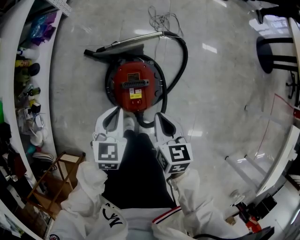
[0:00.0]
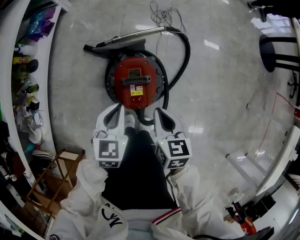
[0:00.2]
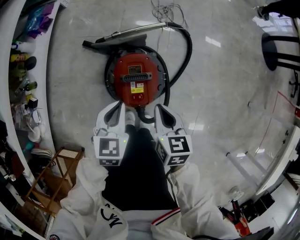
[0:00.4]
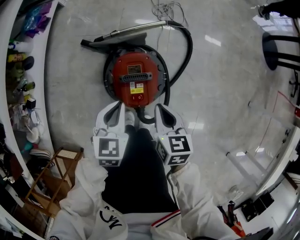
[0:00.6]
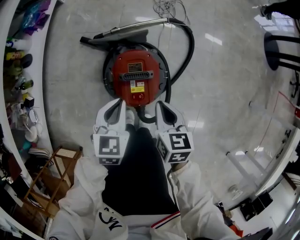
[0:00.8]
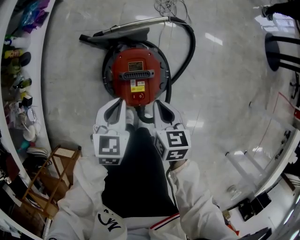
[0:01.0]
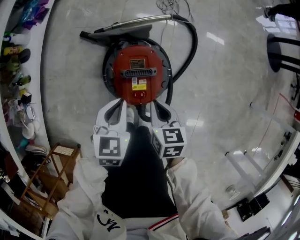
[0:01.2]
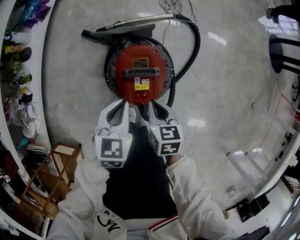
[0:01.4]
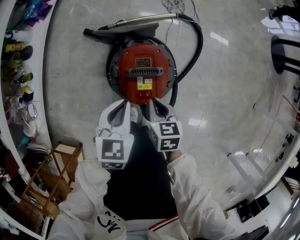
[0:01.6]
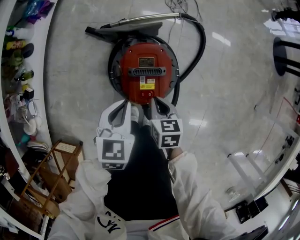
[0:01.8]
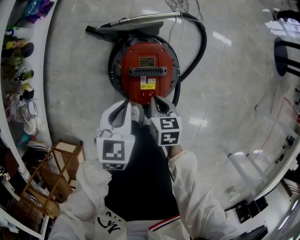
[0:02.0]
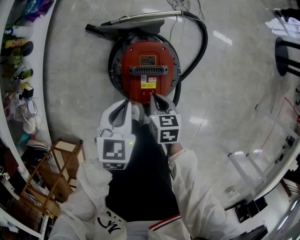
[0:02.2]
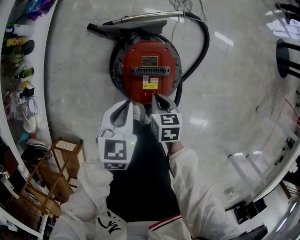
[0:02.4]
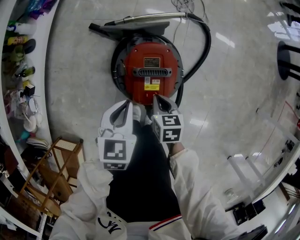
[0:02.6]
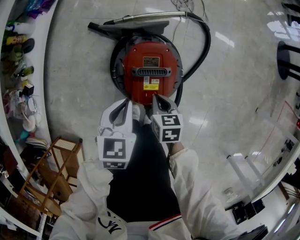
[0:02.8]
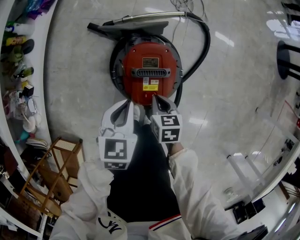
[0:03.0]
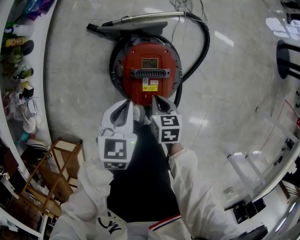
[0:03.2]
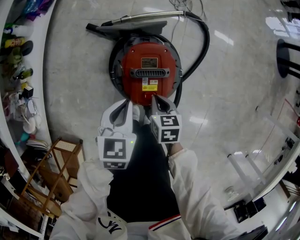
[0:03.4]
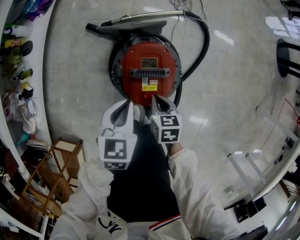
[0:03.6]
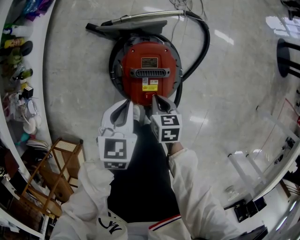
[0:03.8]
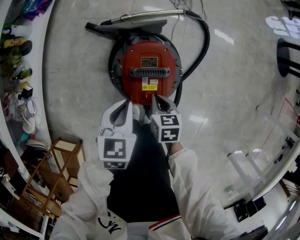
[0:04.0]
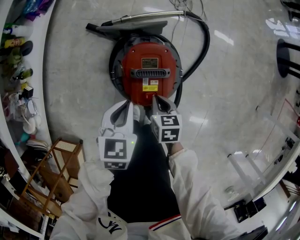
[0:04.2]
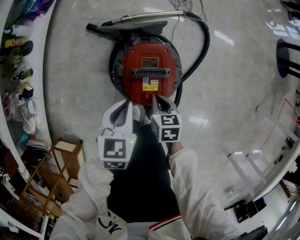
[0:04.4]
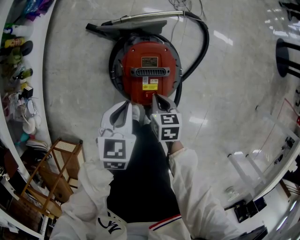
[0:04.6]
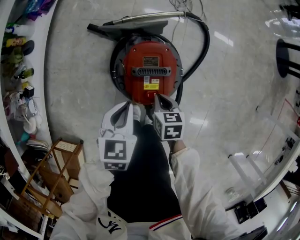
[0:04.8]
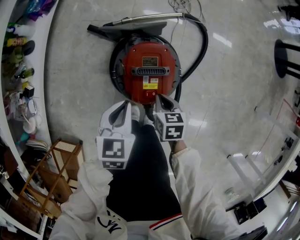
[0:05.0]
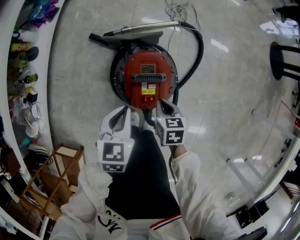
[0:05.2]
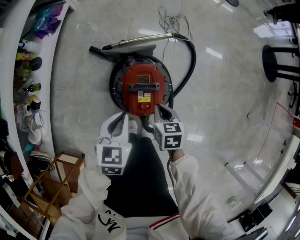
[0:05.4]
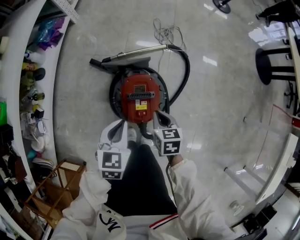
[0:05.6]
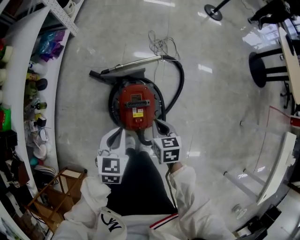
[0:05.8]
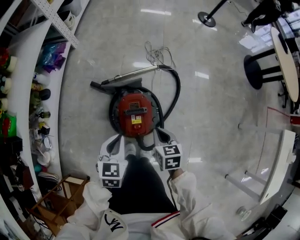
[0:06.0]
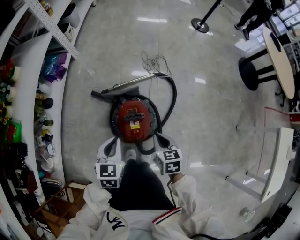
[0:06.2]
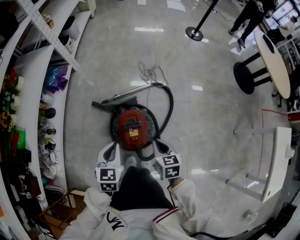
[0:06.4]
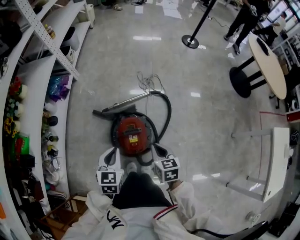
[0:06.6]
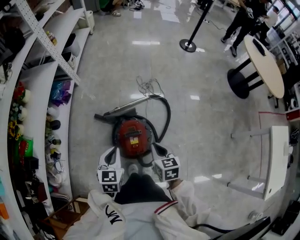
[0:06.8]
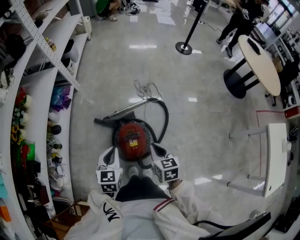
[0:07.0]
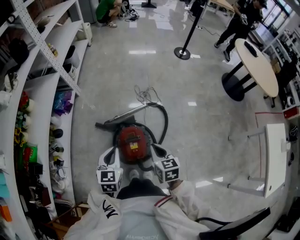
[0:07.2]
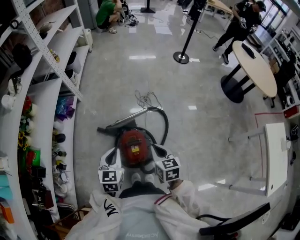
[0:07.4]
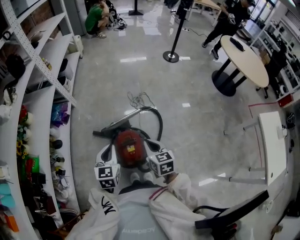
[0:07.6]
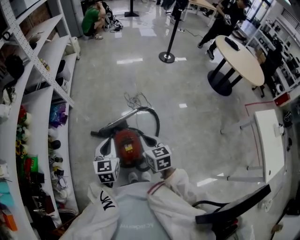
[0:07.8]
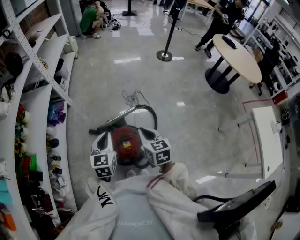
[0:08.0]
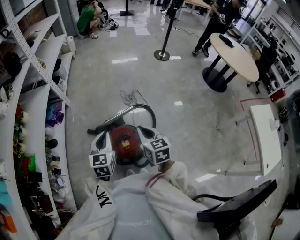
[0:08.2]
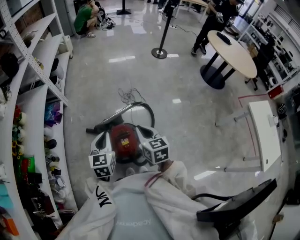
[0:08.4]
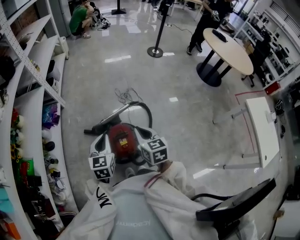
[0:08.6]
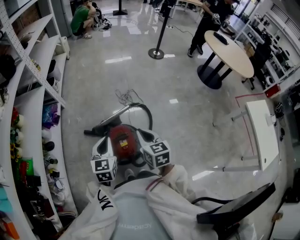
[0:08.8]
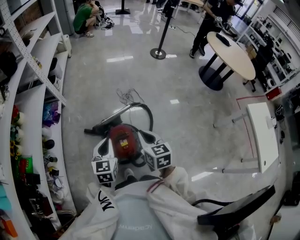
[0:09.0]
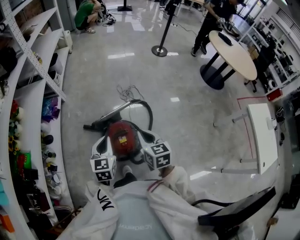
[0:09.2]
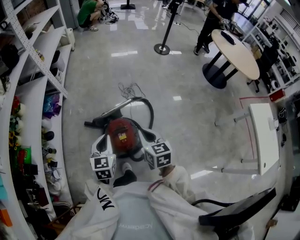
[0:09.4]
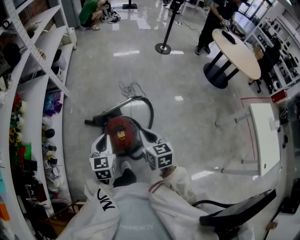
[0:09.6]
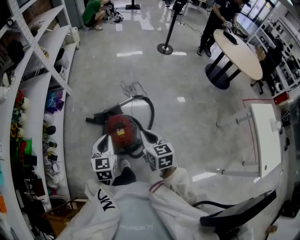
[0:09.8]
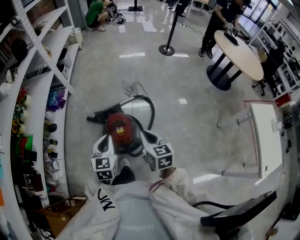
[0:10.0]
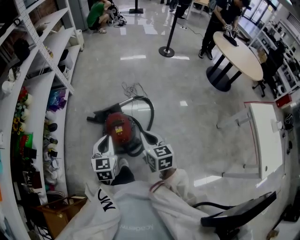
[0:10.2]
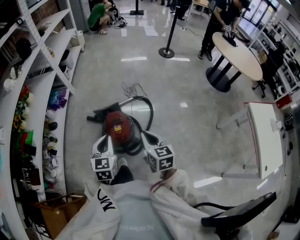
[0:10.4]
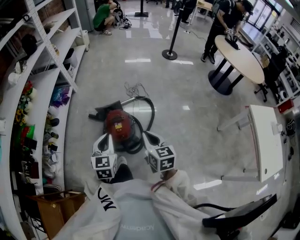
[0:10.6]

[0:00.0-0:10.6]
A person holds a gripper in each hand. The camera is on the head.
0:00.0 to 0:01.6: The right gripper is displaced downward by about 15 cm. The left gripper shifts roughly 5 cm downward.
0:01.6 to 0:03.0: The right gripper shifts approximately 5 cm downward.
0:03.0 to 0:04.6: Both grippers stay about where they are.
0:04.6 to 0:06.0: The two grippers go roughly 15 cm upward.
0:06.0 to 0:07.6: The two grippers go some 20 cm upward.
0:07.6 to 0:09.0: The right gripper changes place by approximately 5 cm.
0:09.0 to 0:10.6: The right gripper shifts approximately 15 cm backward and to the right. Meanwhile the left gripper travels backward by approximately 15 cm.

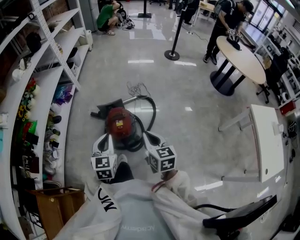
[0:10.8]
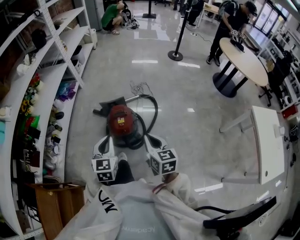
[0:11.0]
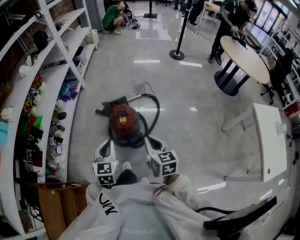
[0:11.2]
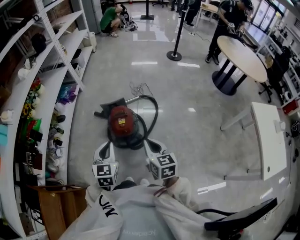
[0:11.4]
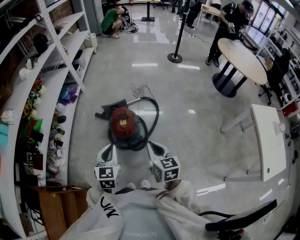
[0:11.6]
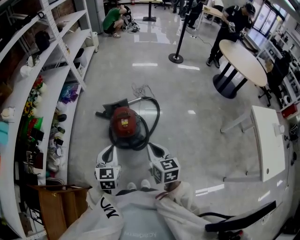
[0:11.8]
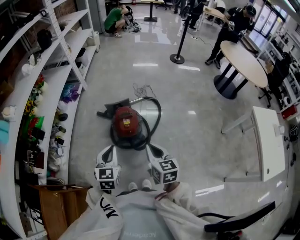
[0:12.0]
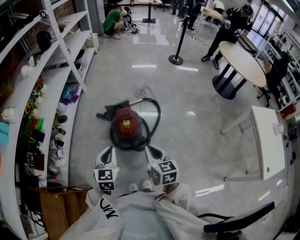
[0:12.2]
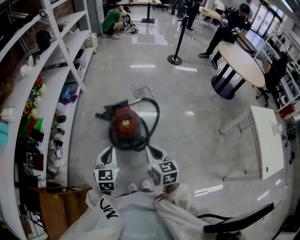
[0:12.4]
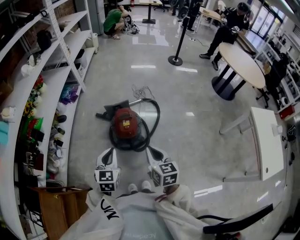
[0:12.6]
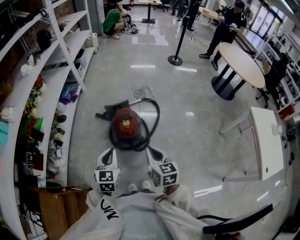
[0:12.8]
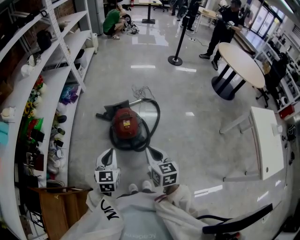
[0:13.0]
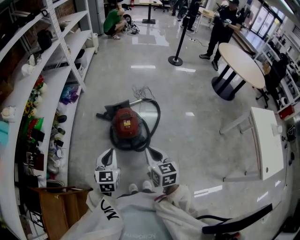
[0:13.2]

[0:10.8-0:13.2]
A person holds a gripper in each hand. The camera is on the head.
0:10.8 to 0:12.0: The left gripper travels backward by roughly 5 cm; the right gripper moves backward and to the left, some 10 cm.
0:12.0 to 0:13.2: The grippers move only a little.

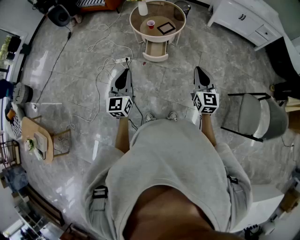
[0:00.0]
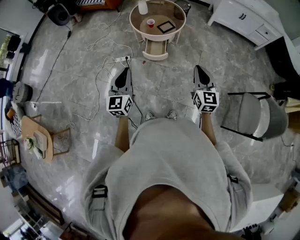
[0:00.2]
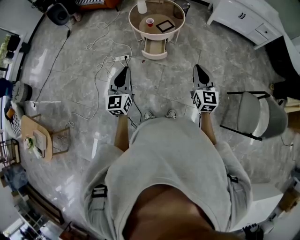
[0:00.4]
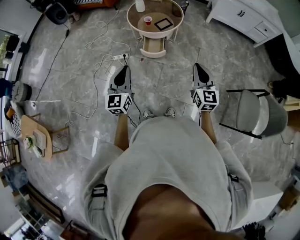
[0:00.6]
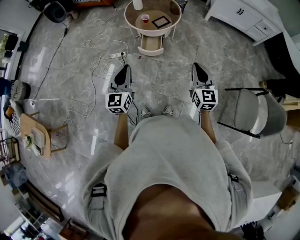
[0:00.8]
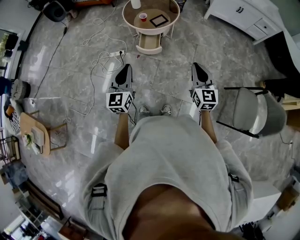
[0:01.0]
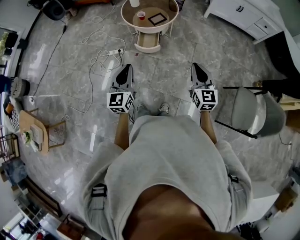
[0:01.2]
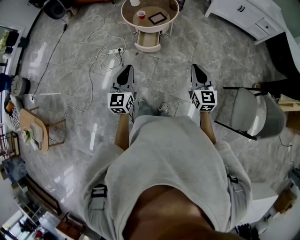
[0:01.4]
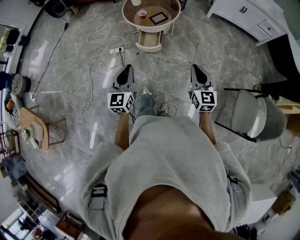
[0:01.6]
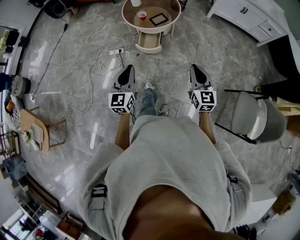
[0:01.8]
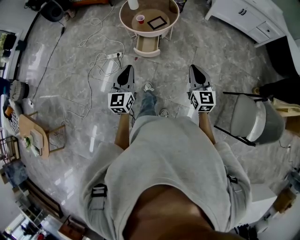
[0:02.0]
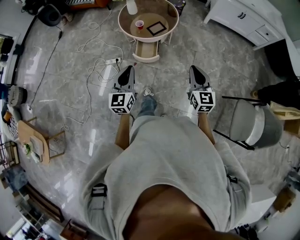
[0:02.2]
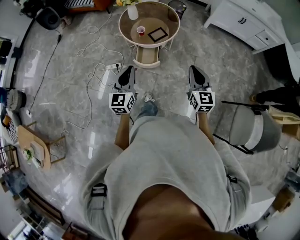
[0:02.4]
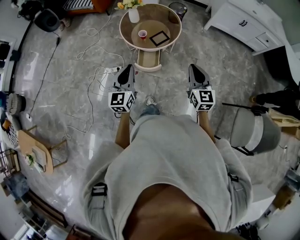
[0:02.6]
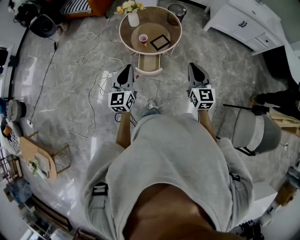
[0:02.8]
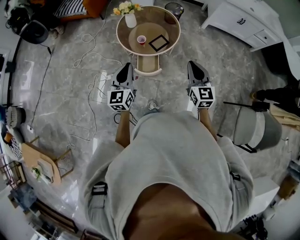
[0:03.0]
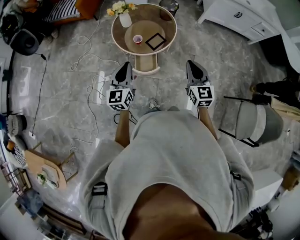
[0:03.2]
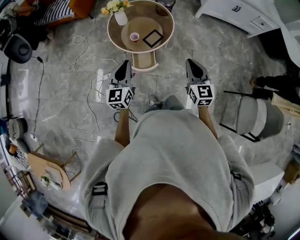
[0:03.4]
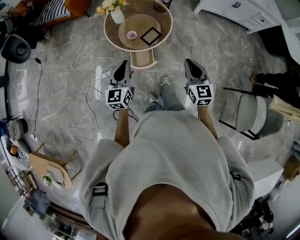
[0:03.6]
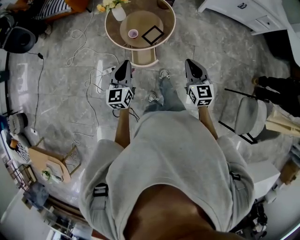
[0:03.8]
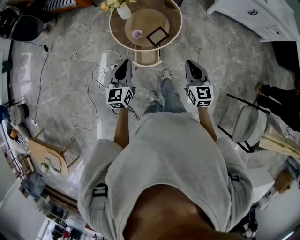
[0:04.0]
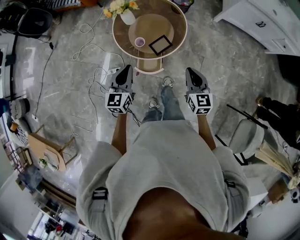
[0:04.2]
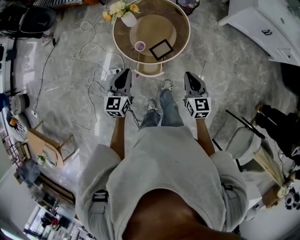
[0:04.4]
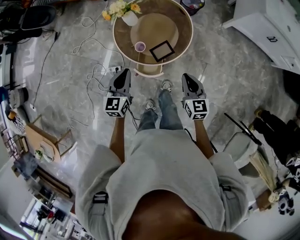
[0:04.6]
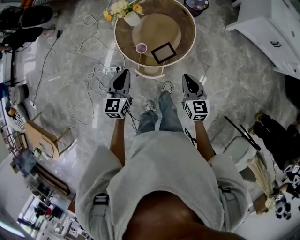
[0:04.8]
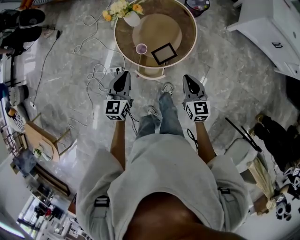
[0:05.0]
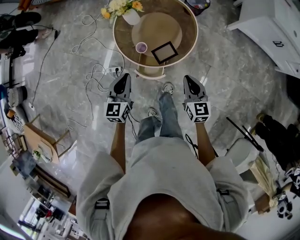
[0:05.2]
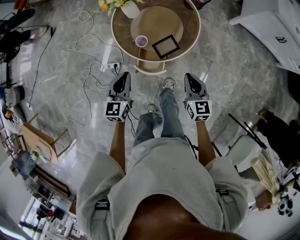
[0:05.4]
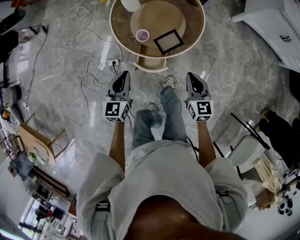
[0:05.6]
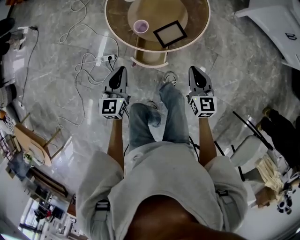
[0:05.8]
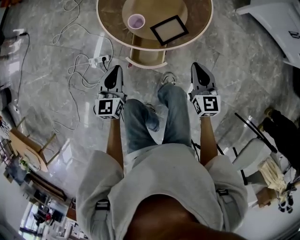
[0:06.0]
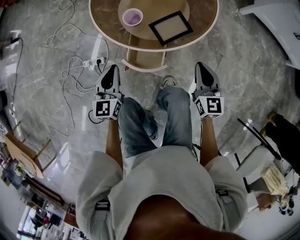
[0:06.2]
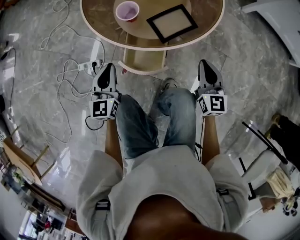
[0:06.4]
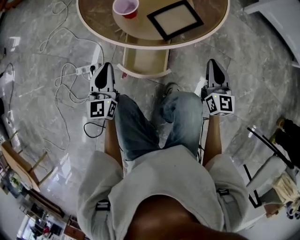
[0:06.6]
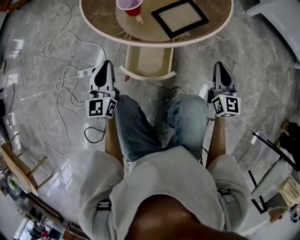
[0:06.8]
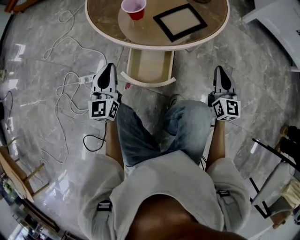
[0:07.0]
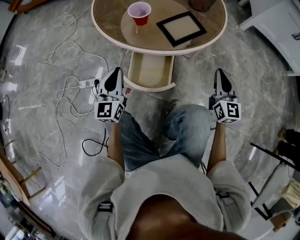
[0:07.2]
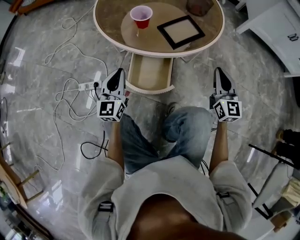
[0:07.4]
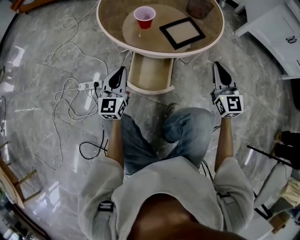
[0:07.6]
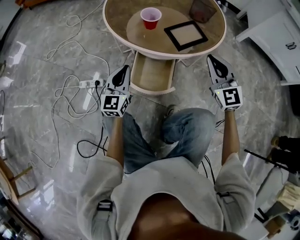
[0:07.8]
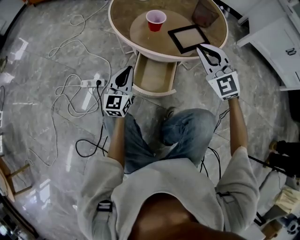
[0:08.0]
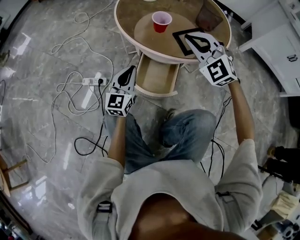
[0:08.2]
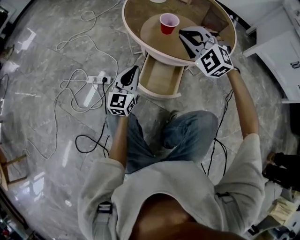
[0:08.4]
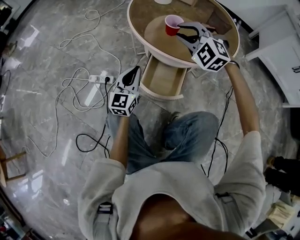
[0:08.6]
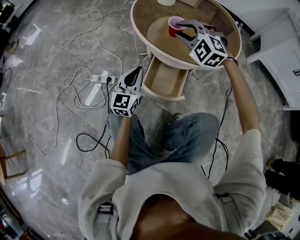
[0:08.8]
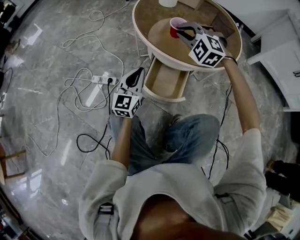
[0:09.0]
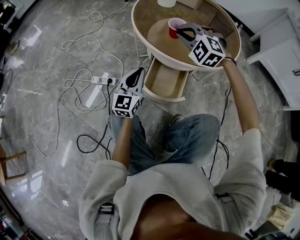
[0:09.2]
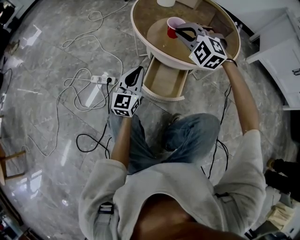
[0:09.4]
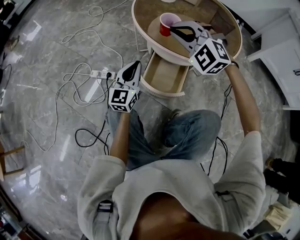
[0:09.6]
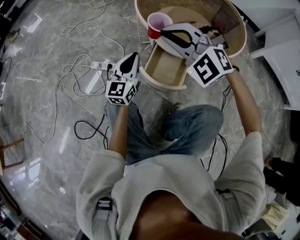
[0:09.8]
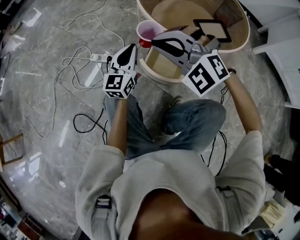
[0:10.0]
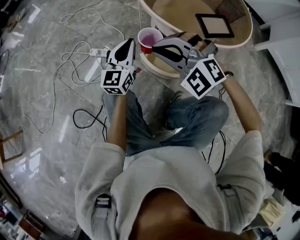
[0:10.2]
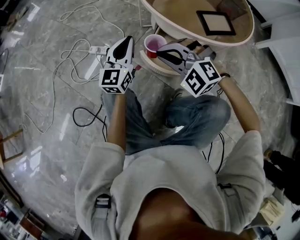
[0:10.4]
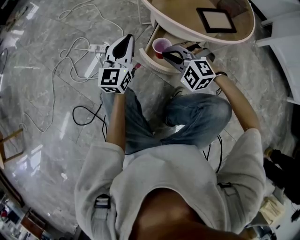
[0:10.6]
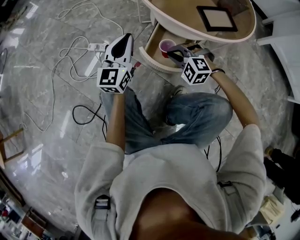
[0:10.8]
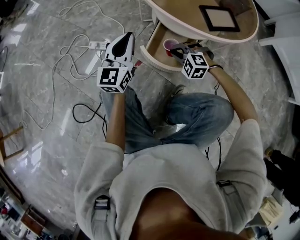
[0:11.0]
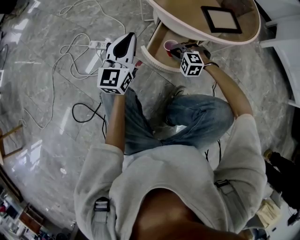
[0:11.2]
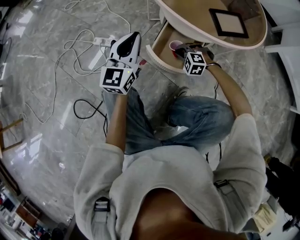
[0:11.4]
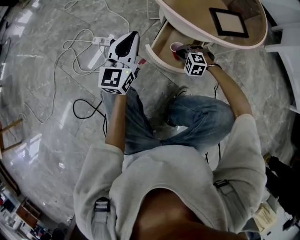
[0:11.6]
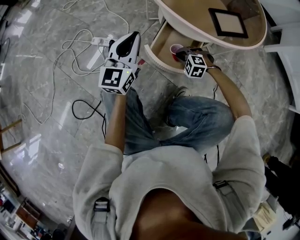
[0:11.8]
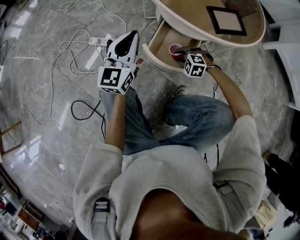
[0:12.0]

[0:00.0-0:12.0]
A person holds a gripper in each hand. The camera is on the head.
0:00.0 to 0:01.6: The grippers both shift to the right by approximately 10 cm.
0:01.6 to 0:03.0: The right gripper travels forward and to the left by roughly 35 cm; the left gripper is displaced forward by about 35 cm.
0:03.0 to 0:04.4: Both grippers move forward and downward, some 25 cm.
0:04.4 to 0:06.0: The grippers both shift downward by about 30 cm.
0:06.0 to 0:07.6: The right gripper moves downward, about 15 cm, and changes its angle by some 20 degrees. Meanwhile the left gripper is displaced downward by about 20 cm.
0:07.6 to 0:09.0: The right gripper is displaced to the left and forward by roughly 30 cm, and rotates around the line of its fingers by about 60 degrees, counterclockwise from behind.
0:09.0 to 0:10.4: The left gripper travels to the left by some 5 cm. The right gripper is displaced backward and to the left by about 20 cm, and turns by approximately 20 degrees.
0:10.4 to 0:12.0: The right gripper travels downward and to the right by roughly 30 cm, turns by some 30 degrees, and opens up.
